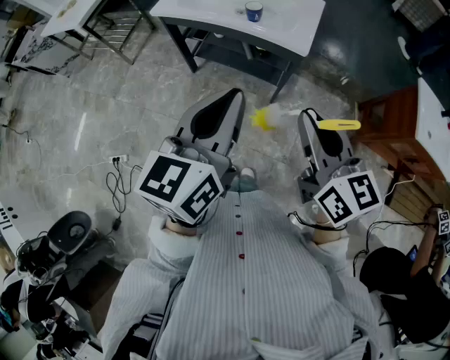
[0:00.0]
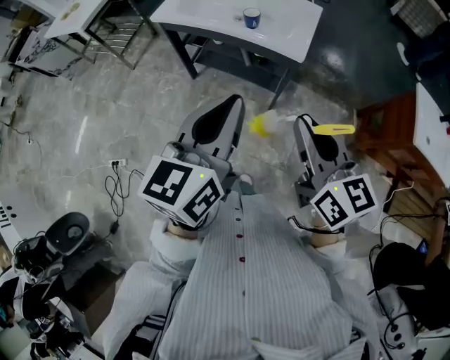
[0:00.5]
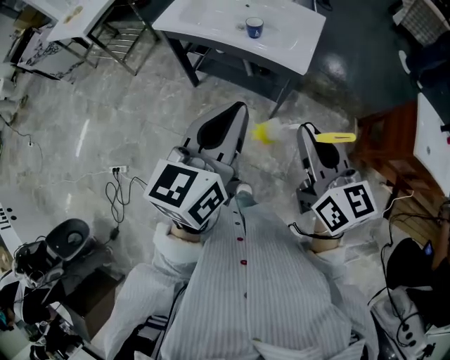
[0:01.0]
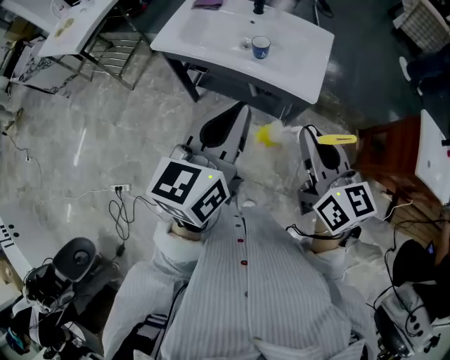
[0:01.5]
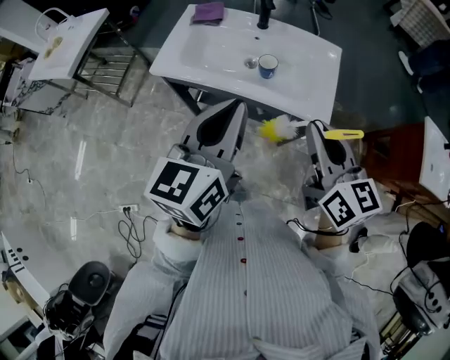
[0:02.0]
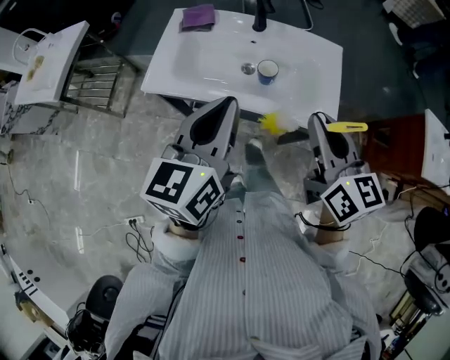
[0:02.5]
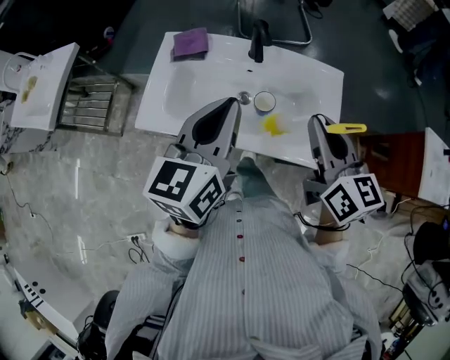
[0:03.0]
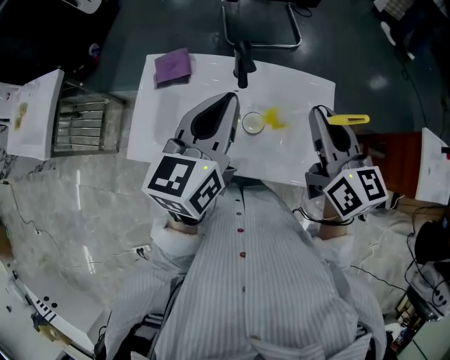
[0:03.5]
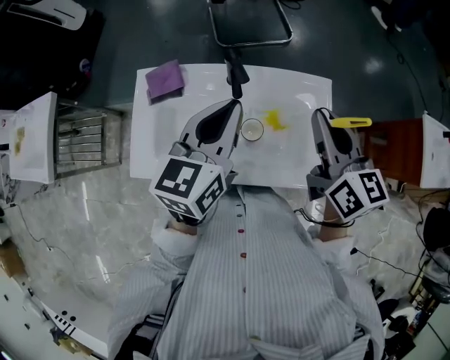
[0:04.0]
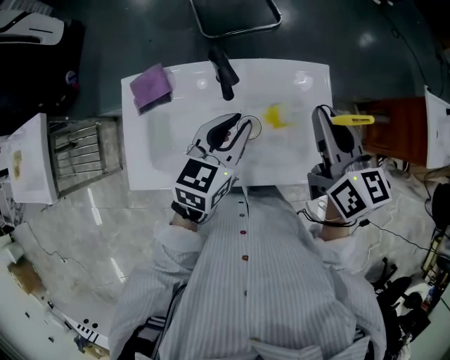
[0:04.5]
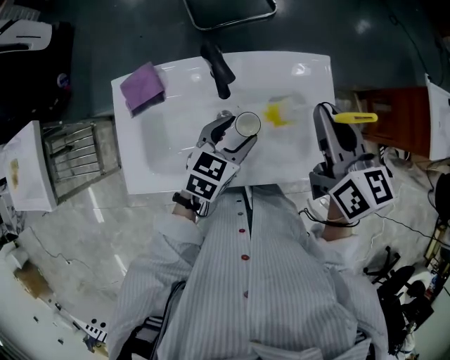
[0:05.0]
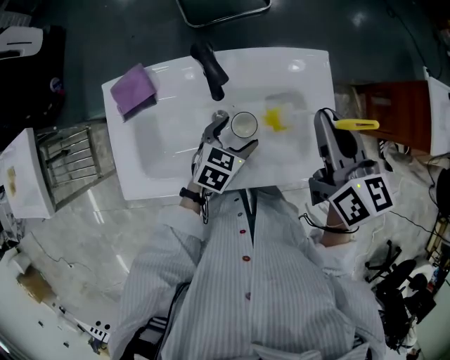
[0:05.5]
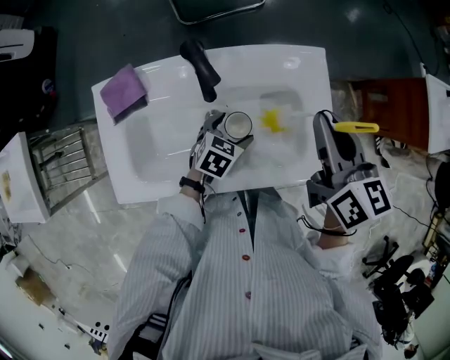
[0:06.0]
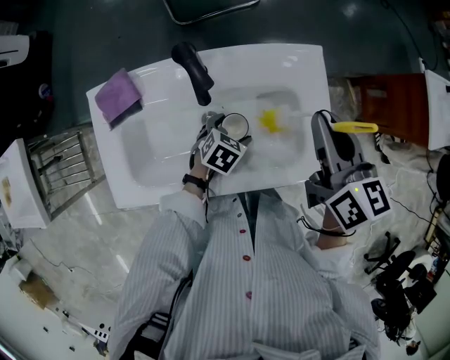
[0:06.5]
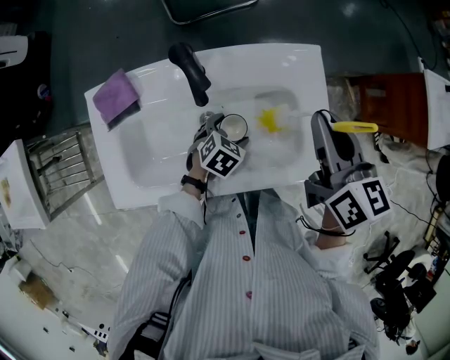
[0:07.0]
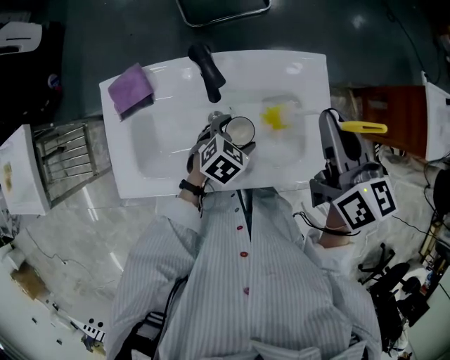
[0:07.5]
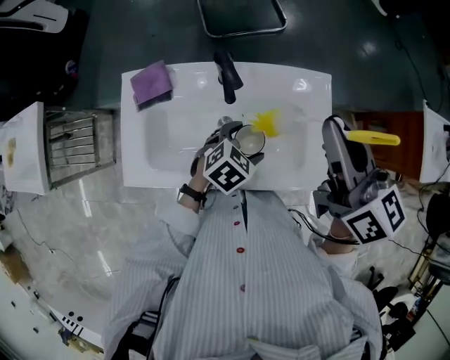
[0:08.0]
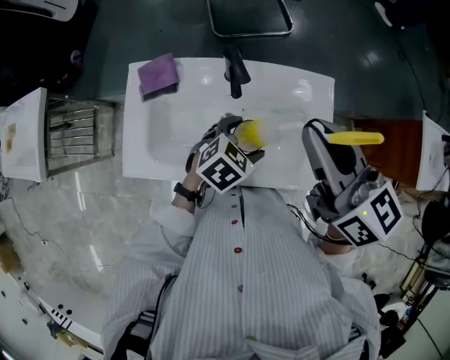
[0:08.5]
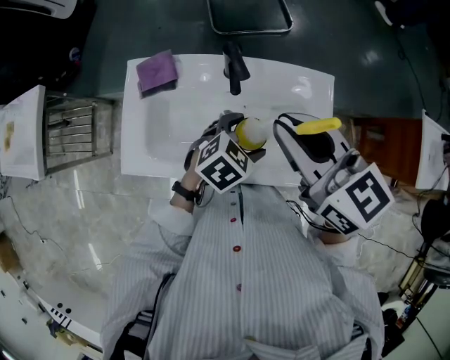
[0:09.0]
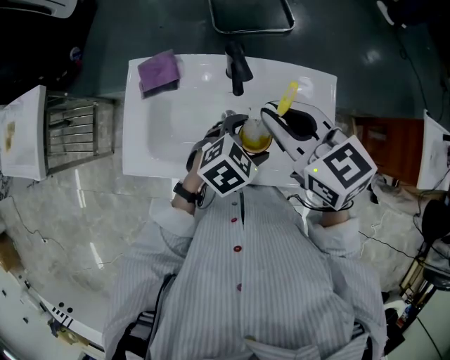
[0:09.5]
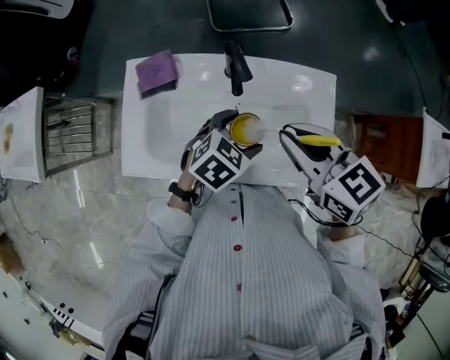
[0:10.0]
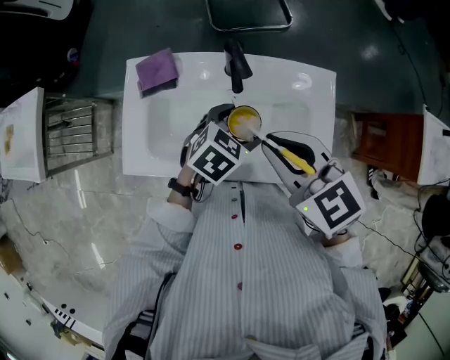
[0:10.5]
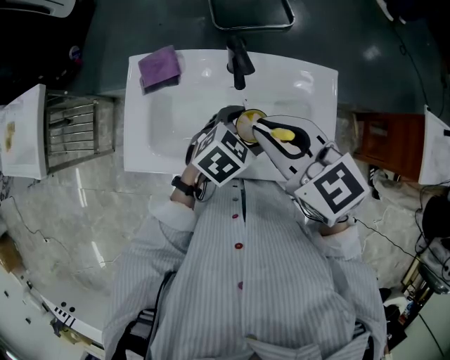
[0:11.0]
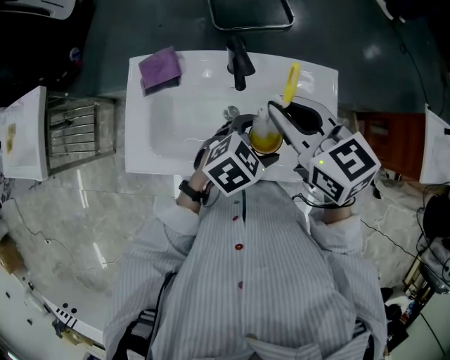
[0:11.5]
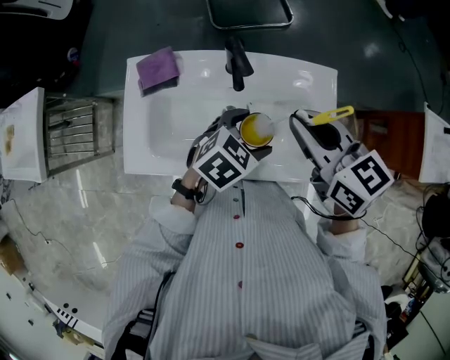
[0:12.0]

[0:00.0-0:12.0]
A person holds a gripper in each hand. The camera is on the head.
0:00.0 to 0:02.0: The grippers both shift forward by some 25 cm.
0:02.0 to 0:04.0: Both grippers travel together forward, about 35 cm.
0:04.0 to 0:06.0: The right gripper shifts approximately 10 cm downward; the left gripper moves downward, roughly 35 cm, tilts its fingers roughly 40 degrees downward, and opens up.
0:06.0 to 0:08.0: The two grippers go about 10 cm upward.
0:08.0 to 0:10.0: The left gripper shifts by about 5 cm. The right gripper goes approximately 10 cm downward and to the left, and turns by about 30 degrees.

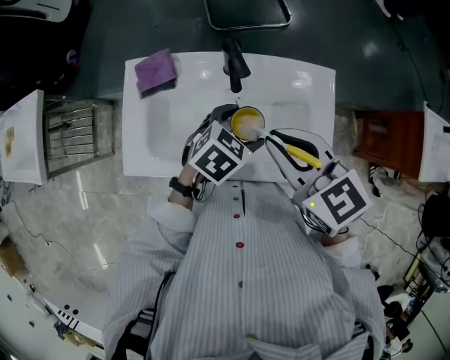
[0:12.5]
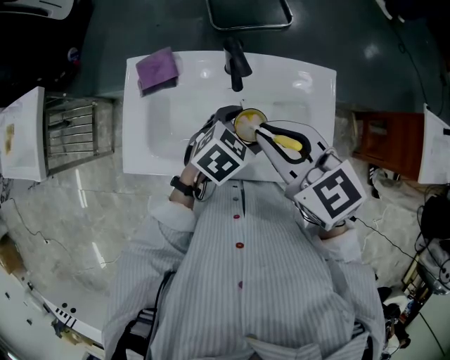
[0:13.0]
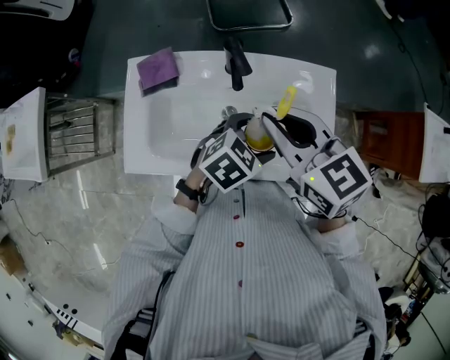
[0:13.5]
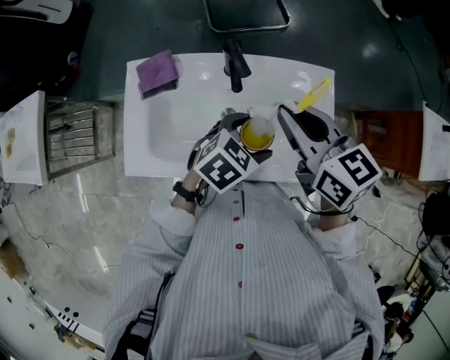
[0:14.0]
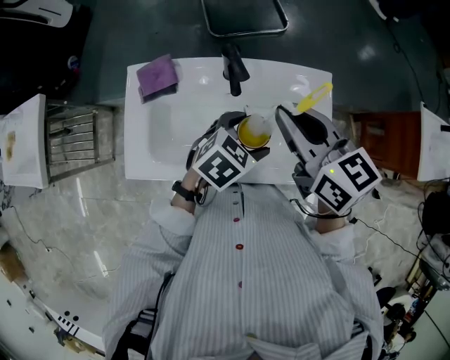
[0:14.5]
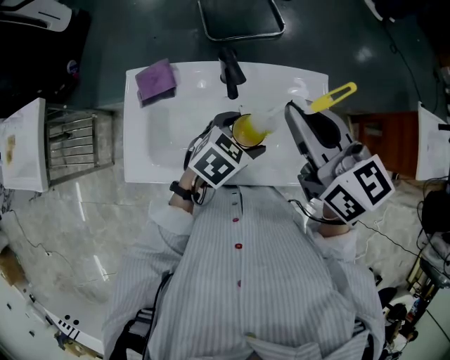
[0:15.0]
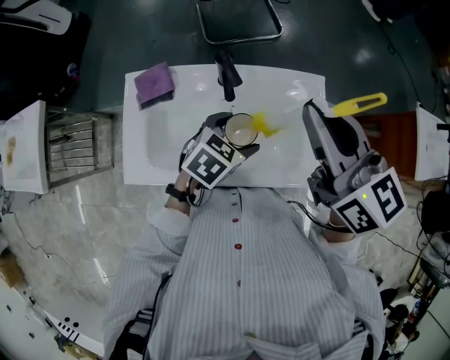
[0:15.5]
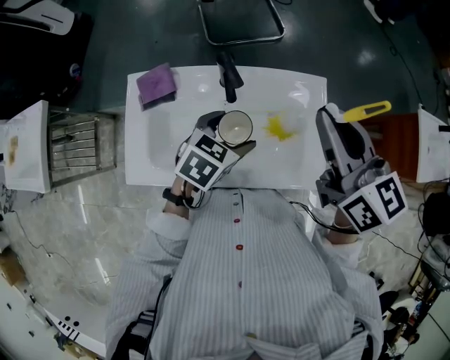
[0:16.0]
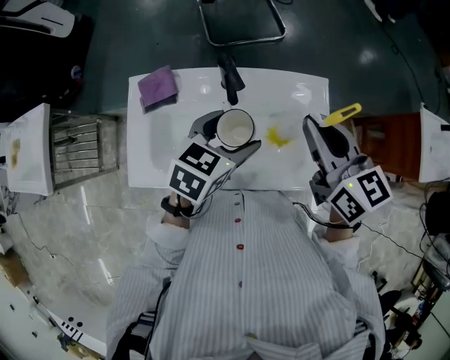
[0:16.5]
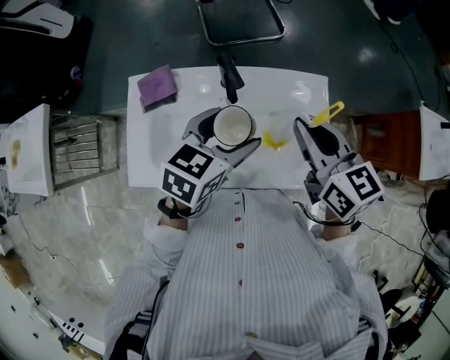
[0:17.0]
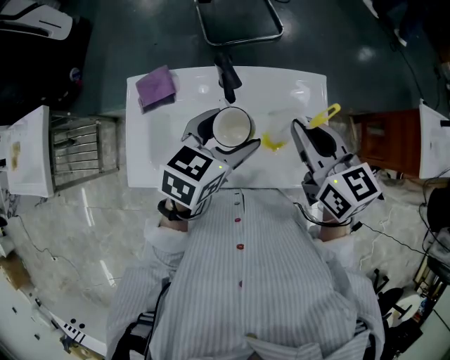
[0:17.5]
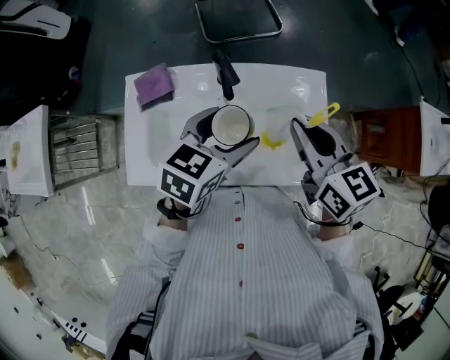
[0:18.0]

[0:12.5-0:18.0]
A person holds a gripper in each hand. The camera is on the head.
0:12.5 to 0:14.5: The right gripper heads forward, covering some 5 cm.
0:14.5 to 0:16.0: The right gripper goes some 10 cm to the right and upward.
0:16.0 to 0:18.0: The left gripper travels upward by roughly 5 cm. The right gripper heads downward, covering about 10 cm.

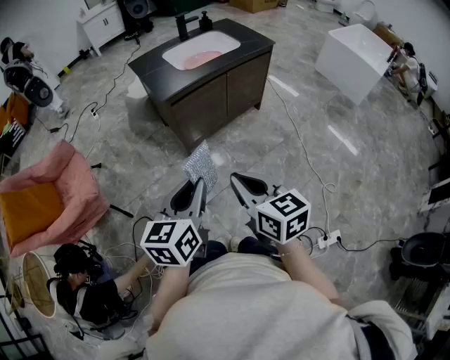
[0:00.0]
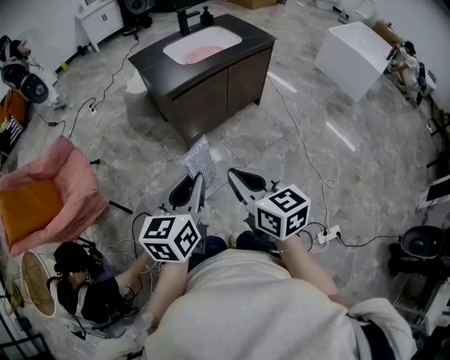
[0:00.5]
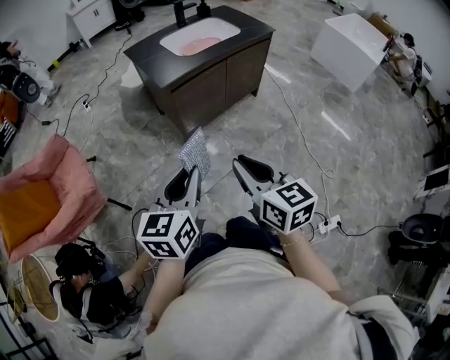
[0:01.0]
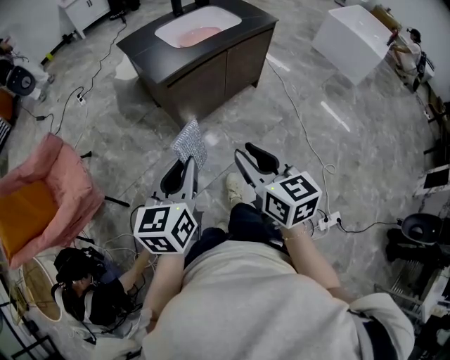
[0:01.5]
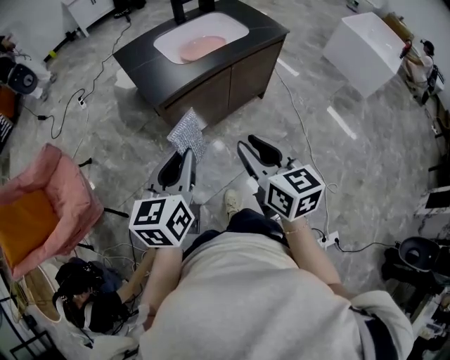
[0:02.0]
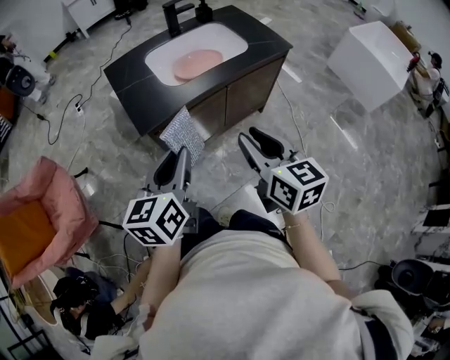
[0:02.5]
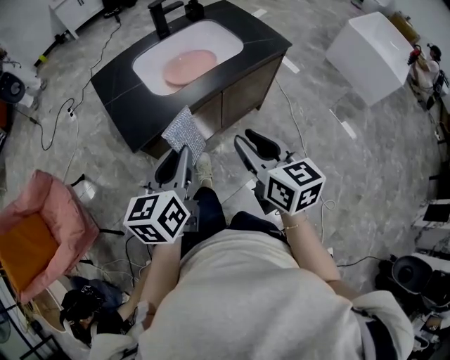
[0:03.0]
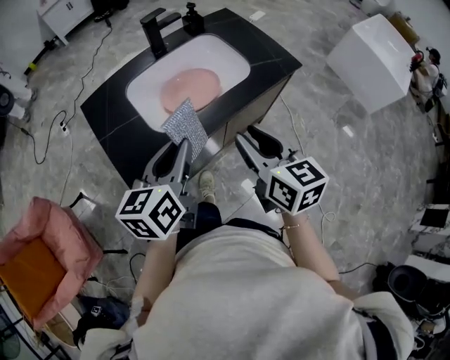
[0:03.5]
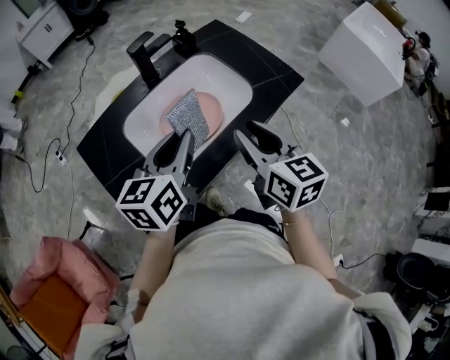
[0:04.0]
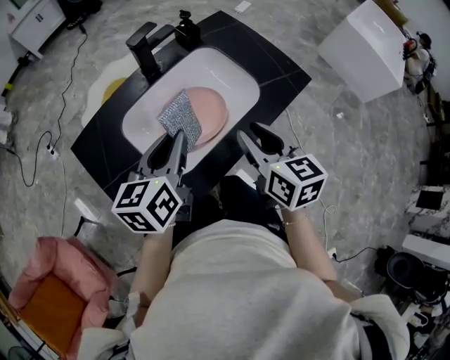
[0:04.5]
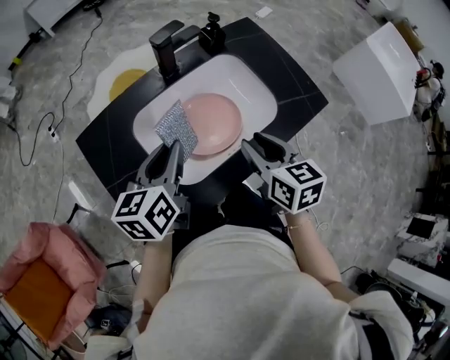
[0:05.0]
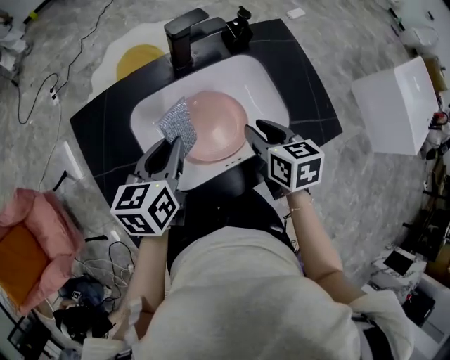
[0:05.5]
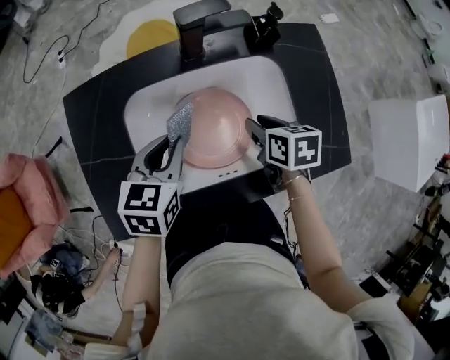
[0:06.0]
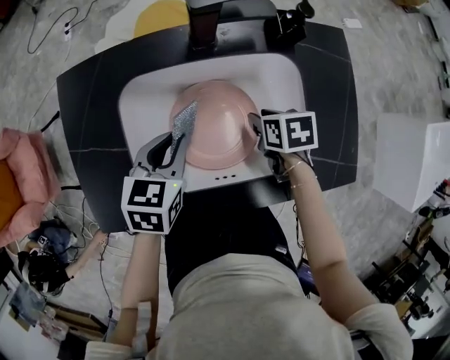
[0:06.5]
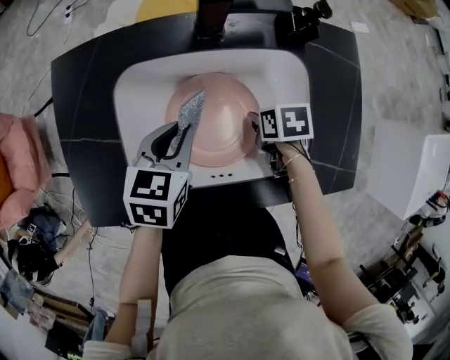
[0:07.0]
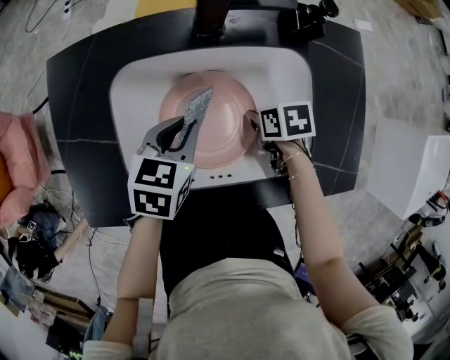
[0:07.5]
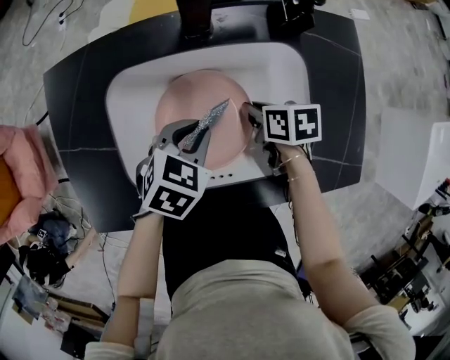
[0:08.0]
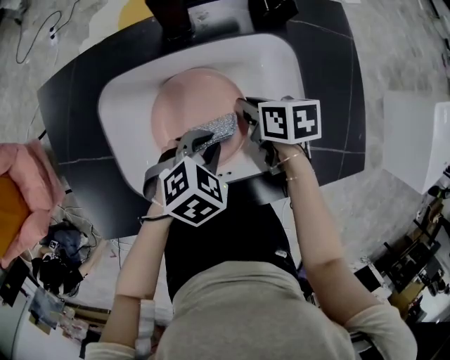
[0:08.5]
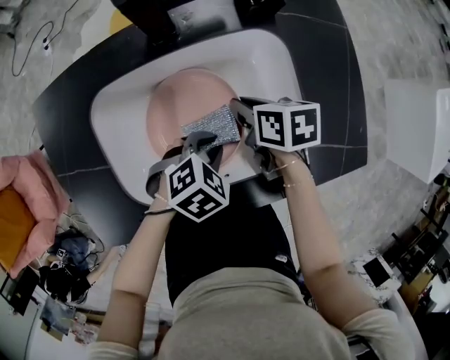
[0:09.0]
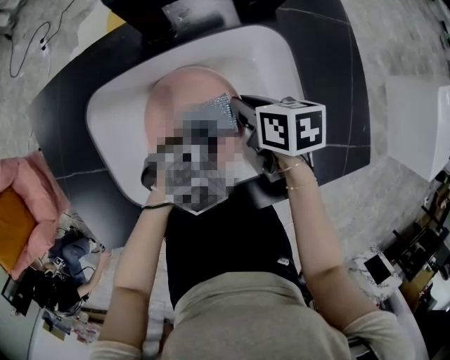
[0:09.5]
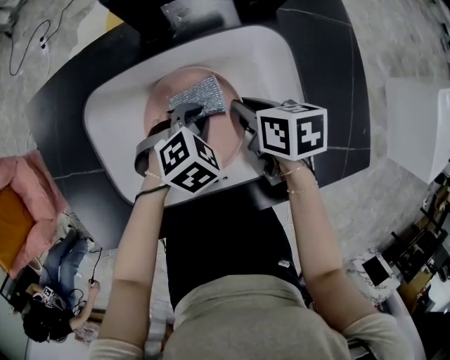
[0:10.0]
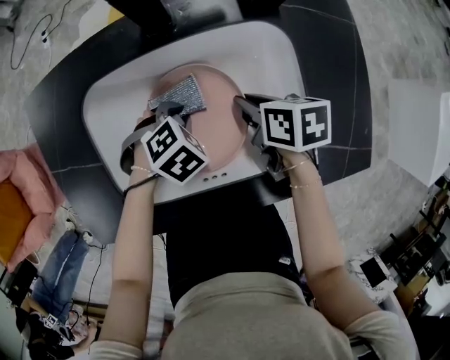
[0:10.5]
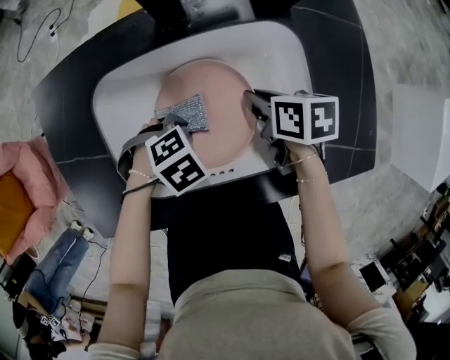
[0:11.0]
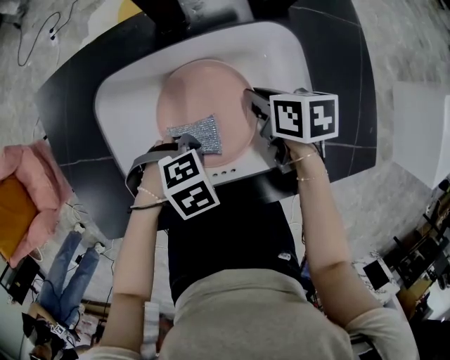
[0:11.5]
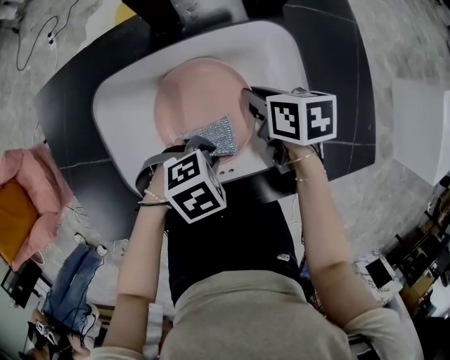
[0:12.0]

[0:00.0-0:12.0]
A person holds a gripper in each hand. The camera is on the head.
0:00.0 to 0:02.0: The two grippers go some 20 cm forward. The right gripper opens its fingers.
0:02.0 to 0:04.0: The pair of grippers is taken forward, approximately 50 cm.
0:04.0 to 0:06.0: The right gripper changes place by approximately 30 cm, and tilts its fingers about 40 degrees downward; the left gripper moves downward, some 15 cm, and turns by approximately 30 degrees.
0:06.0 to 0:08.0: The left gripper shifts some 10 cm downward and to the right, and swivels approximately 20 degrees, while the right gripper heads downward, covering about 10 cm.
0:08.0 to 0:10.0: The left gripper heads downward, covering about 5 cm, and changes its angle by roughly 30 degrees.
0:10.0 to 0:12.0: The left gripper shifts by about 10 cm, and rotates roughly 20 degrees.
